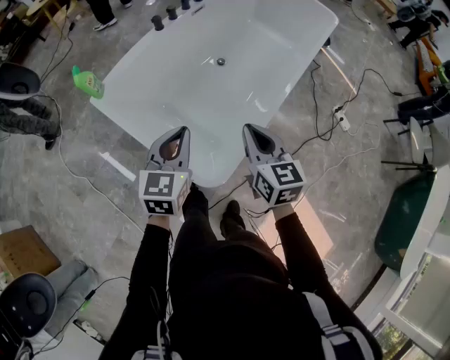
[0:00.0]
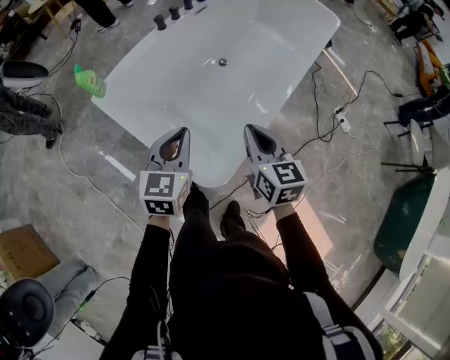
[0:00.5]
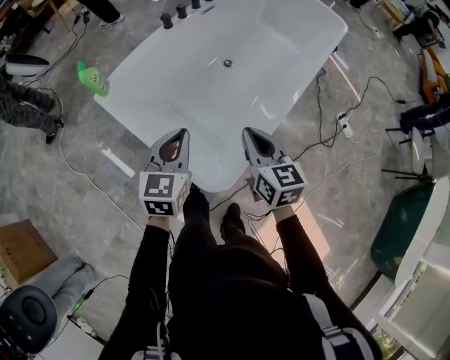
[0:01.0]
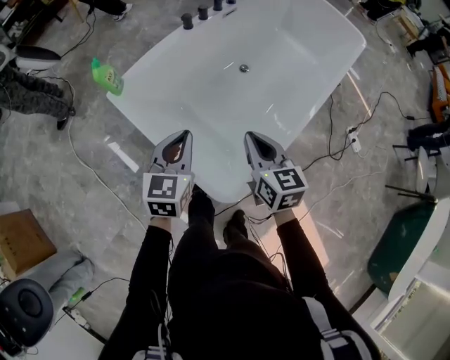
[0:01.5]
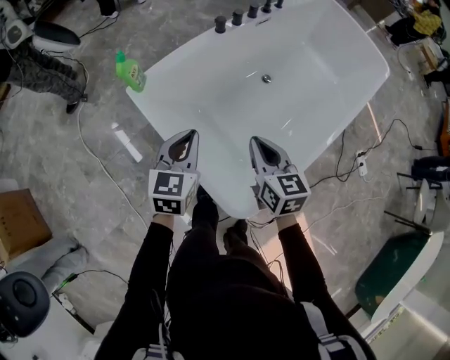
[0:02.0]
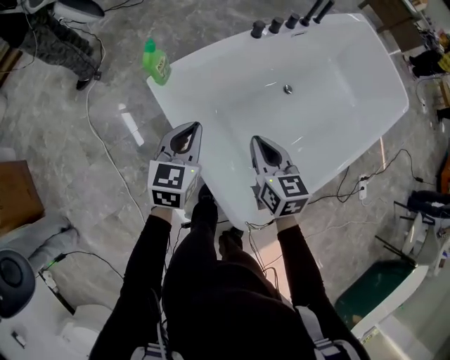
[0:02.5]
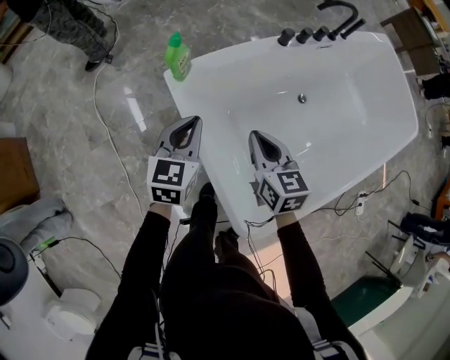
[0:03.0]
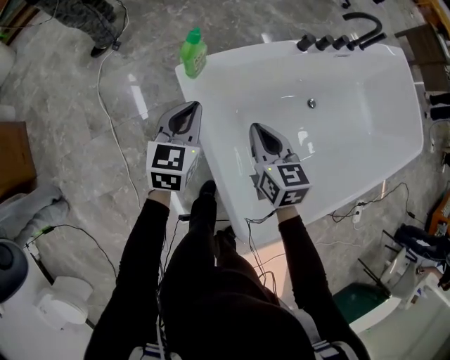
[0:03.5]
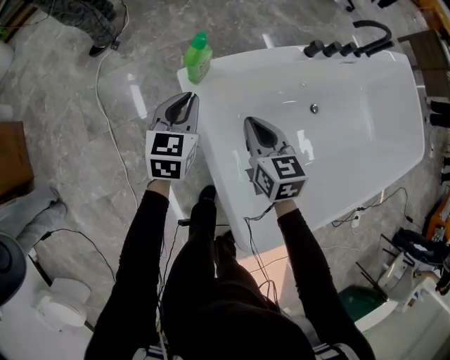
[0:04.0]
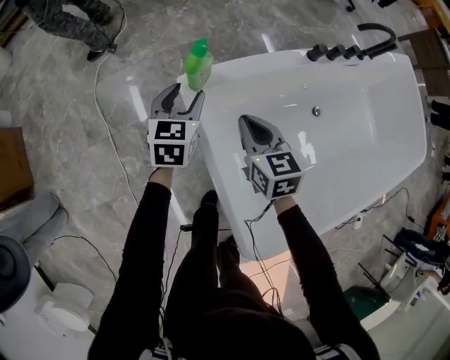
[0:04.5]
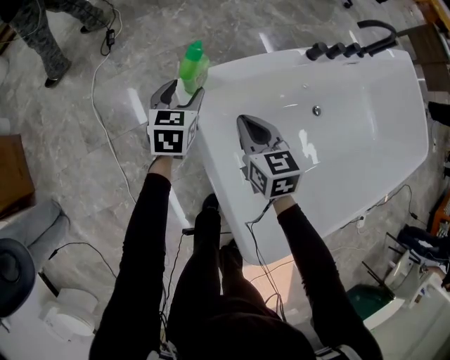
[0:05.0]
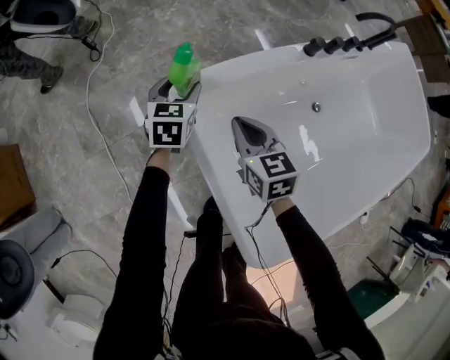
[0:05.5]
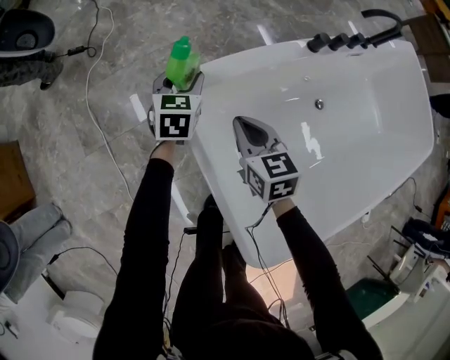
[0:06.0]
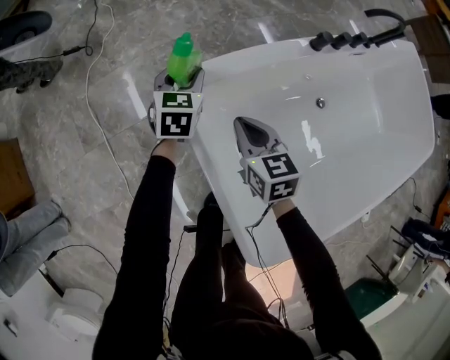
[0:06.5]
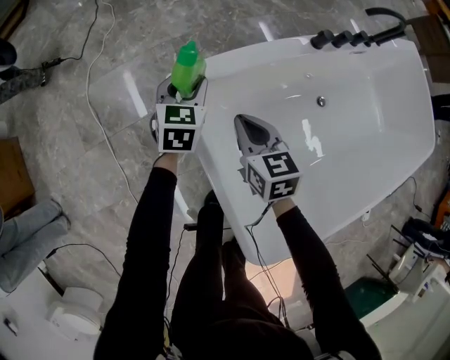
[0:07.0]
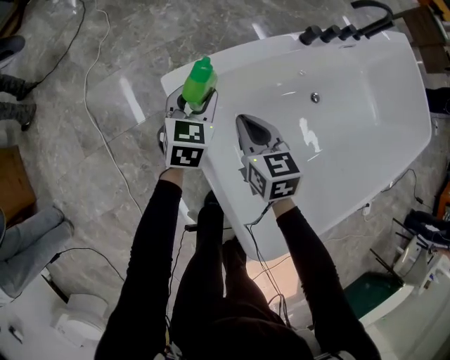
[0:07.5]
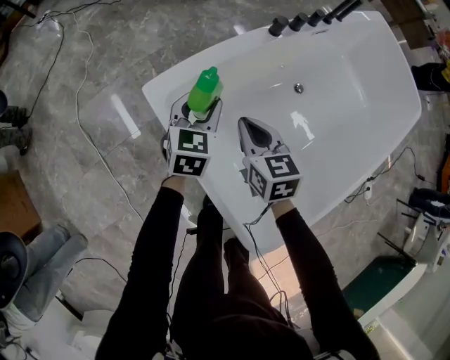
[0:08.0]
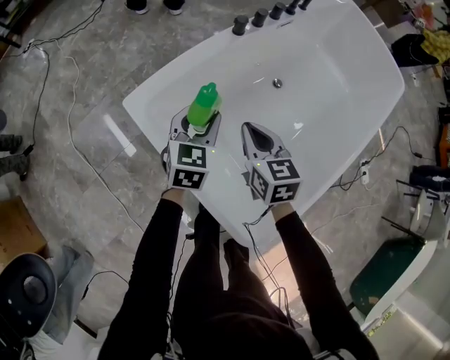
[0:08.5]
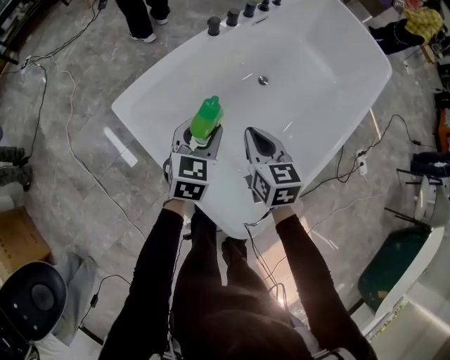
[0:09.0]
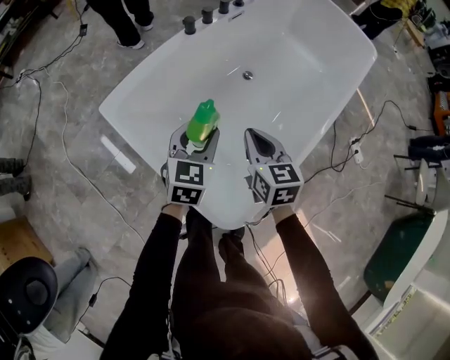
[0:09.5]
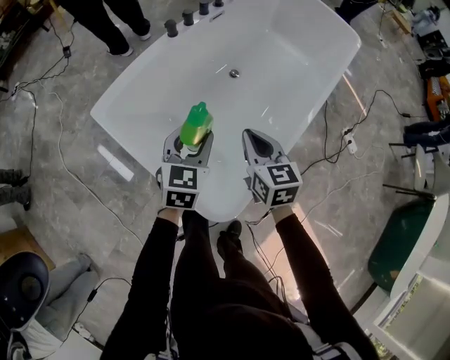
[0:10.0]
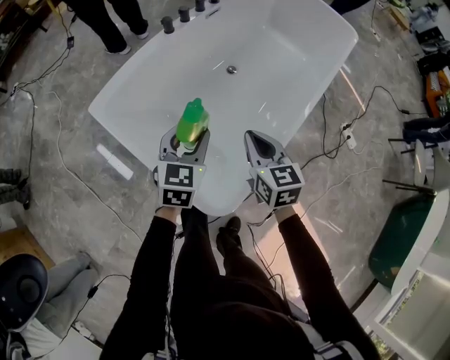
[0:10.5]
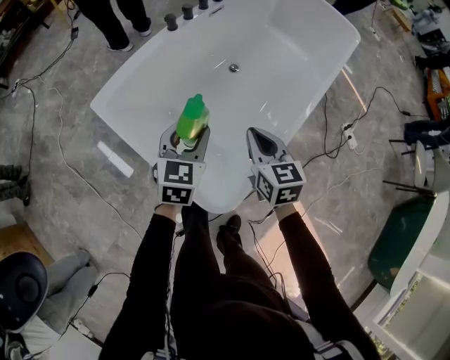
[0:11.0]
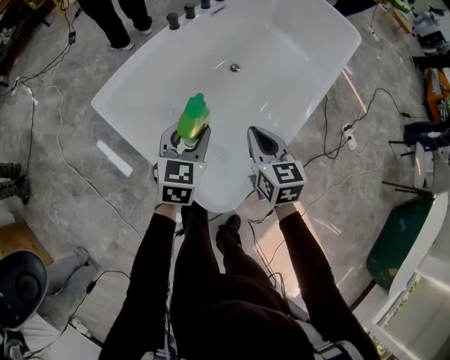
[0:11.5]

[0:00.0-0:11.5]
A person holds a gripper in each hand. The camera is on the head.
0:00.0 to 0:02.0: The grippers both shift to the left and forward by approximately 15 cm.
0:02.0 to 0:04.0: The right gripper is displaced forward and to the left by about 25 cm, and changes its angle by approximately 20 degrees. The left gripper heads forward, to the left and downward, covering some 25 cm, and rotates approximately 20 degrees.
0:04.0 to 0:06.0: The left gripper moves forward and downward, some 15 cm, and opens its fingers. Meanwhile the right gripper moves downward, some 5 cm.
0:06.0 to 0:07.5: The left gripper is displaced backward by roughly 5 cm.
0:07.5 to 0:09.5: The left gripper changes place by about 35 cm, and changes its angle by about 20 degrees, while the right gripper shifts by about 30 cm, and turns by some 30 degrees.
0:09.5 to 0:11.5: The right gripper heads backward and to the right, covering about 10 cm, while the left gripper goes approximately 5 cm backward.

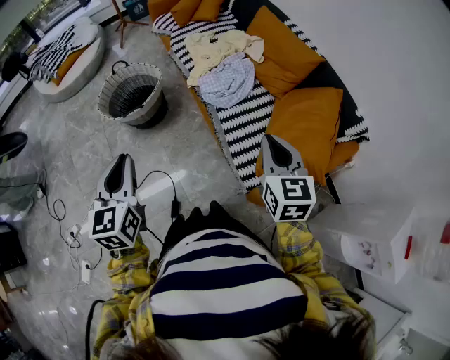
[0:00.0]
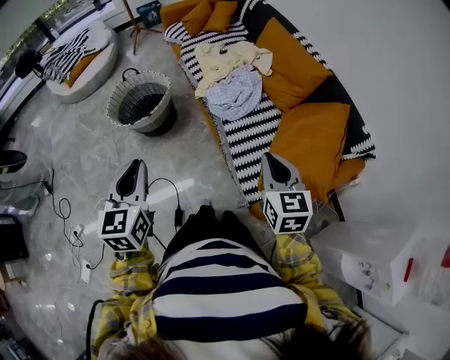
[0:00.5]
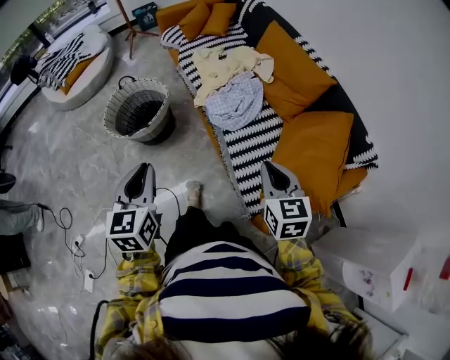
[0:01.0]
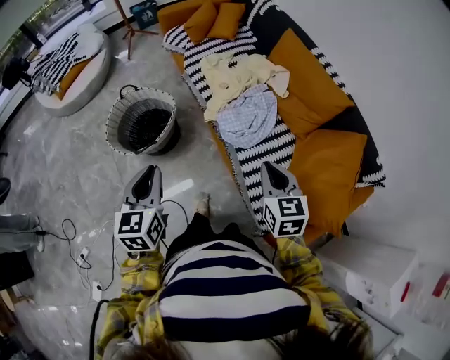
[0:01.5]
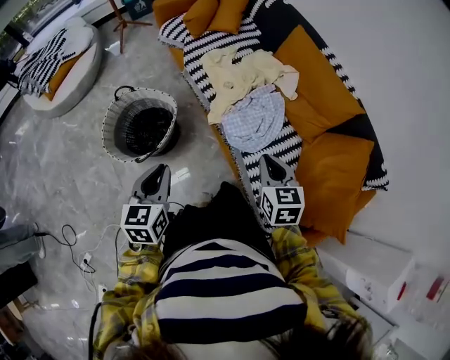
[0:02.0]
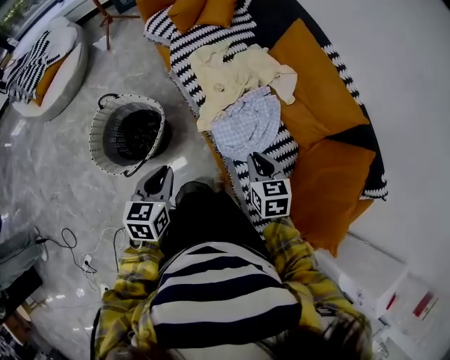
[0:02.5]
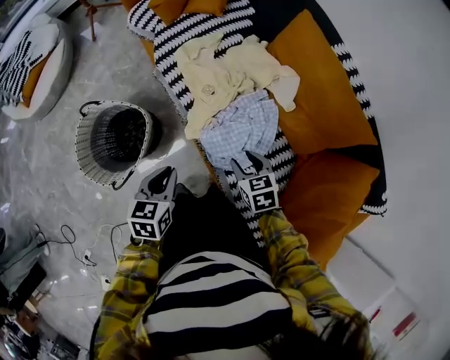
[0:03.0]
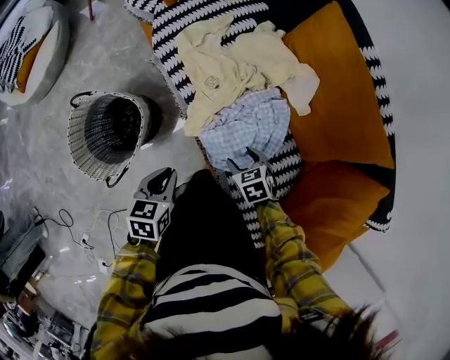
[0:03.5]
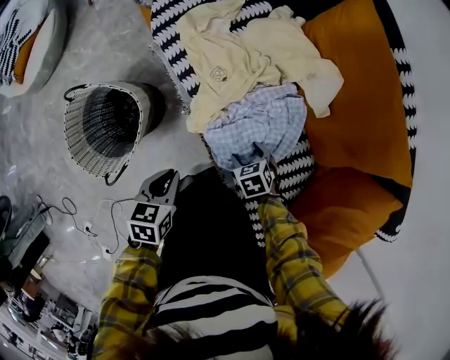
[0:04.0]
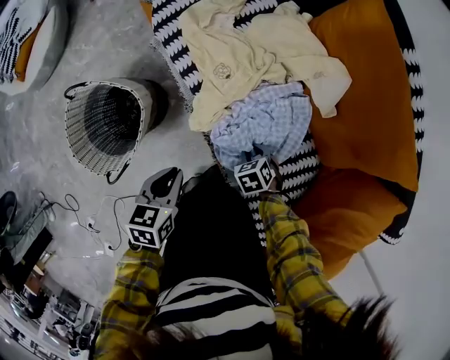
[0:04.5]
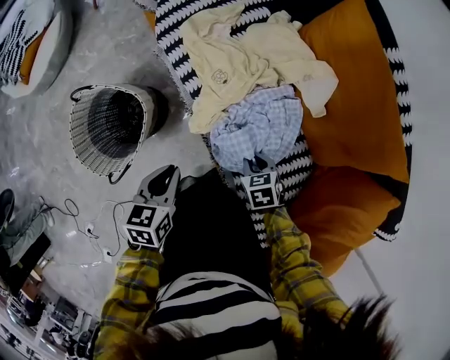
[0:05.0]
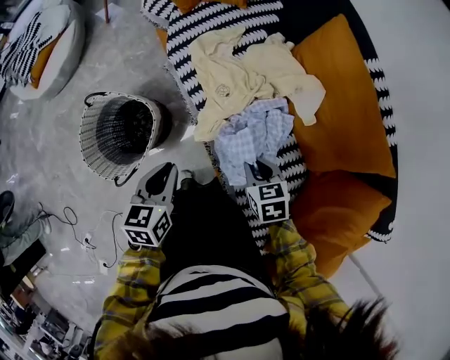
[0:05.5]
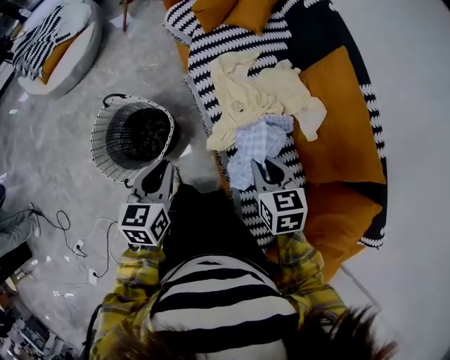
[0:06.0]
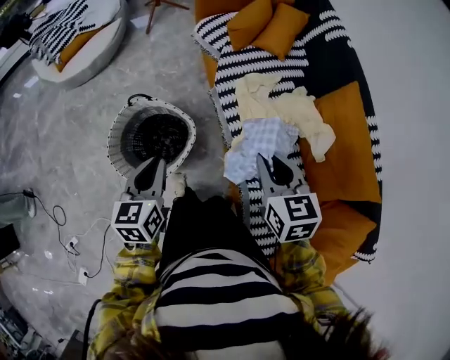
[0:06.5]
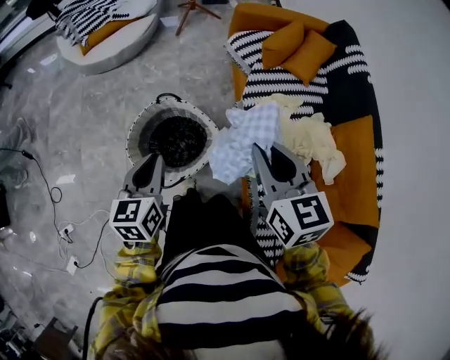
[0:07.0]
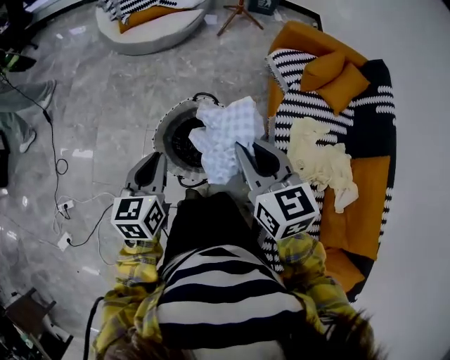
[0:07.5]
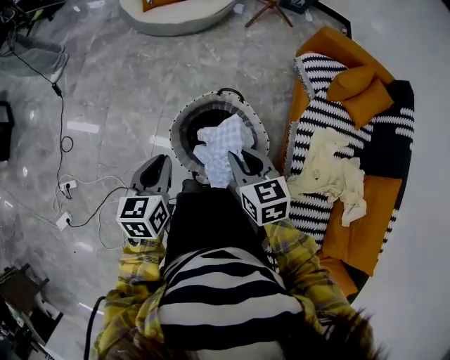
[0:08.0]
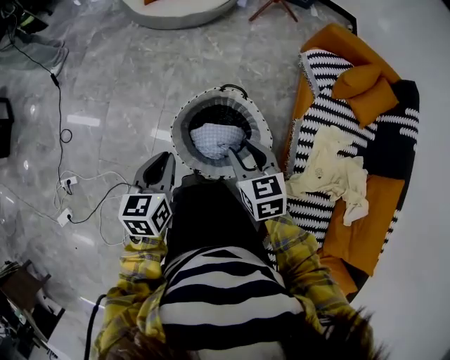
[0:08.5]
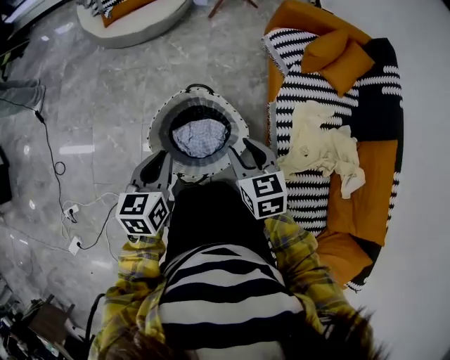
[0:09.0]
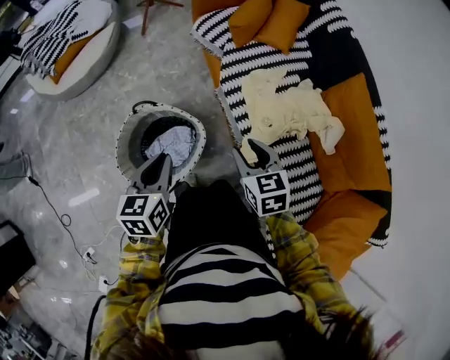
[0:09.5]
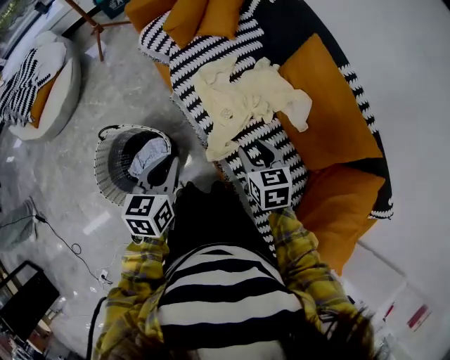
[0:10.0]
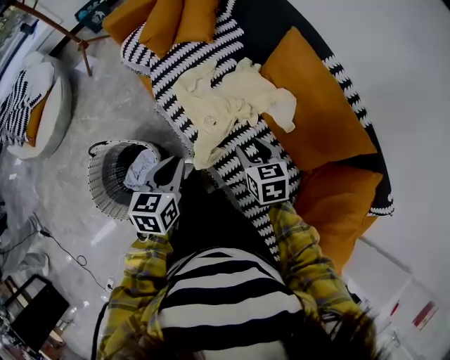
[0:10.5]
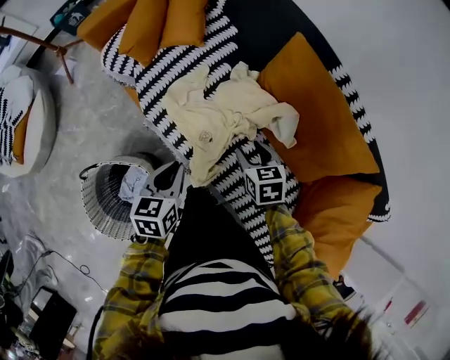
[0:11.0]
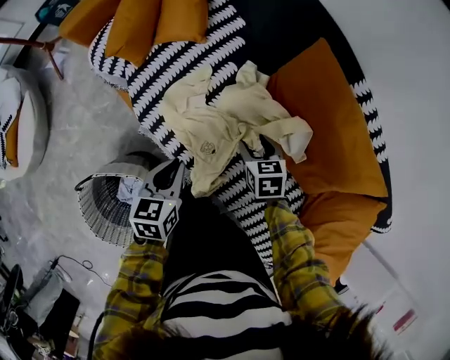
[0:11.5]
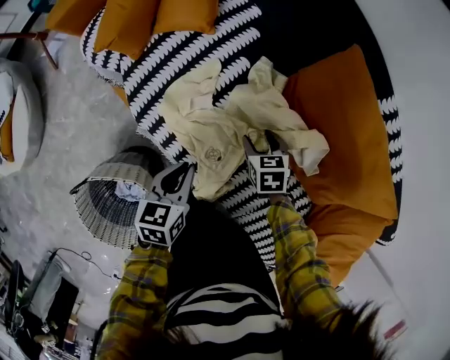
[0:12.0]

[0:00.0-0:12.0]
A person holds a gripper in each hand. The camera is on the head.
0:00.0 to 0:02.0: Both grippers travel together forward and downward, approximately 30 cm.
0:02.0 to 0:04.0: Both grippers travel together downward, about 30 cm. The left gripper swivels approximately 40 degrees; the right gripper turns by roughly 40 degrees, and opens.
0:04.0 to 0:06.0: The left gripper shifts some 15 cm upward, and changes its angle by some 30 degrees; the right gripper is displaced upward by roughly 25 cm, swivels some 30 degrees, and closes its fingers.
0:06.0 to 0:08.0: The left gripper ends up roughly 35 cm from where it was, and rotates about 30 degrees; the right gripper moves roughly 15 cm upward and comes back, and changes its angle by about 40 degrees.
0:08.0 to 0:10.0: The right gripper shifts by some 40 cm, and turns by approximately 50 degrees. Meanwhile the left gripper moves roughly 40 cm, and changes its angle by roughly 50 degrees.
0:10.0 to 0:12.0: The two grippers go some 25 cm downward and to the right.

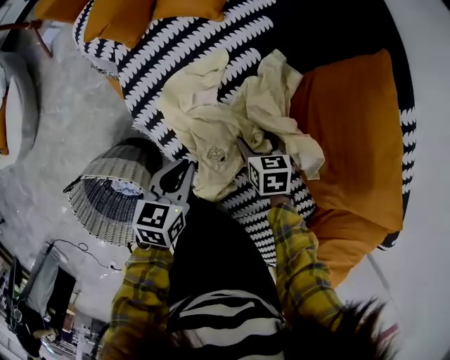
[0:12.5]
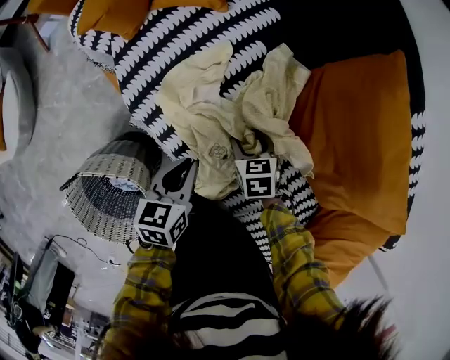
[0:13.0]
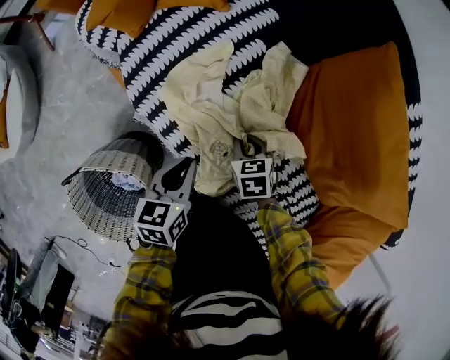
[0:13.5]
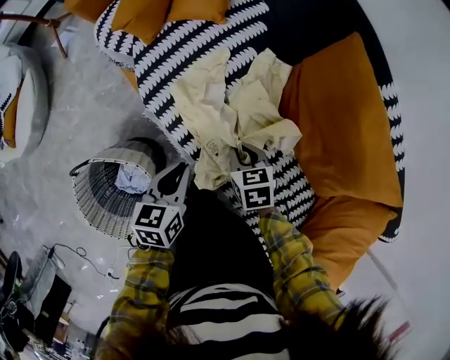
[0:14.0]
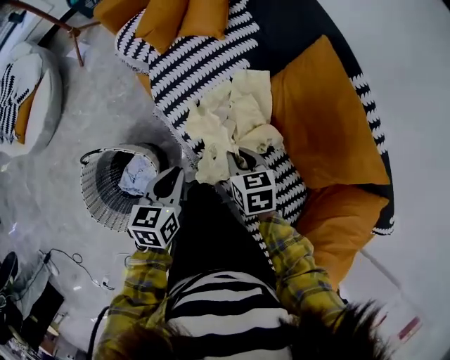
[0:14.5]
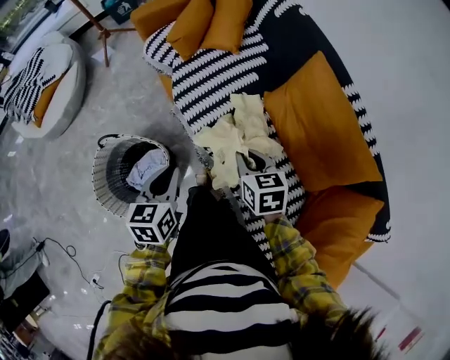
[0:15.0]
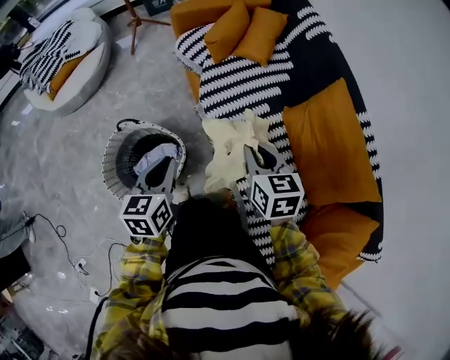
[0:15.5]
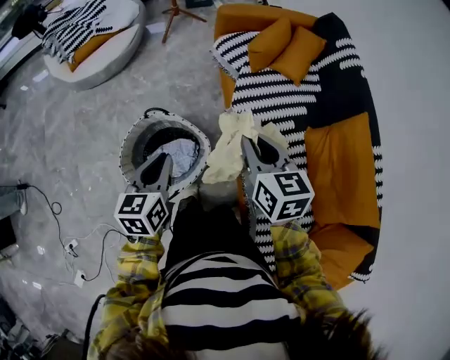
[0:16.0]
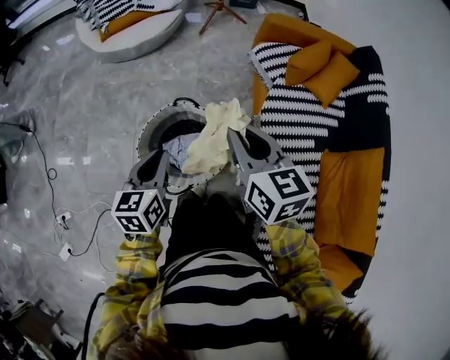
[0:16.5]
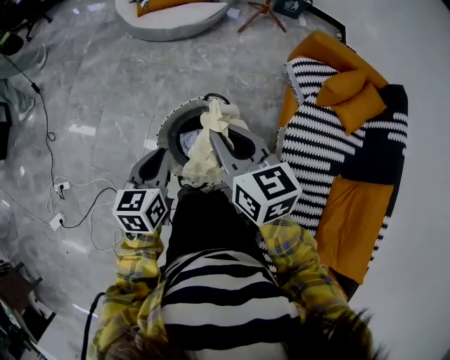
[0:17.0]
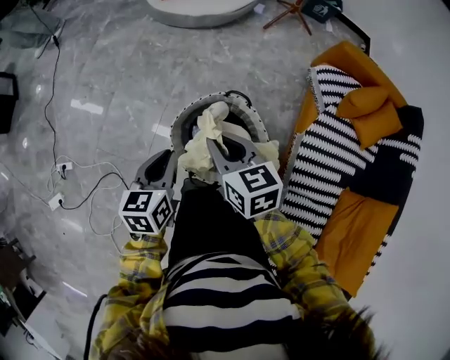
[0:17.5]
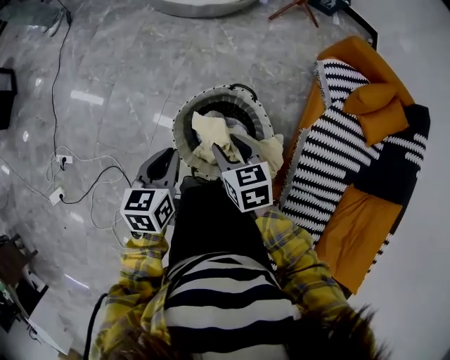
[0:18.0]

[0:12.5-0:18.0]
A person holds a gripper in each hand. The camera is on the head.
0:12.5 to 0:14.5: The grippers both shift upward and backward by some 20 cm. The right gripper closes.
0:14.5 to 0:16.0: The left gripper heads to the left and upward, covering some 30 cm, and rotates about 30 degrees. Meanwhile the right gripper shifts about 30 cm upward and to the left, and rotates some 30 degrees.
0:16.0 to 0:18.0: The left gripper ends up approximately 25 cm from where it was, and swivels roughly 30 degrees. Meanwhile the right gripper moves some 35 cm, turns by roughly 40 degrees, and opens up.
